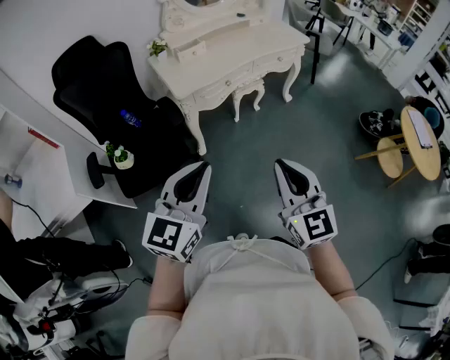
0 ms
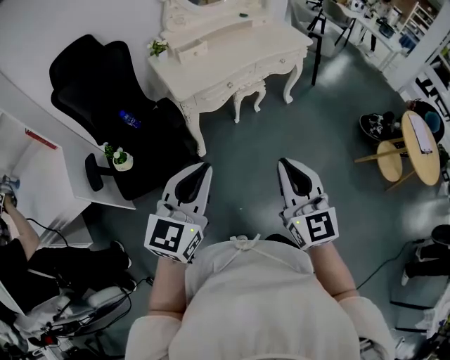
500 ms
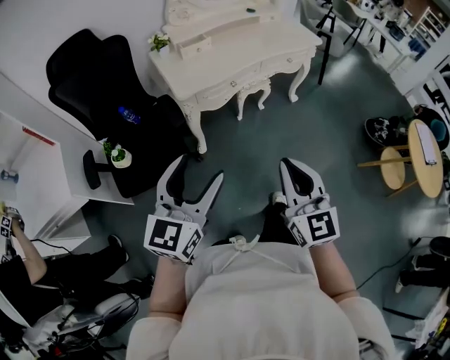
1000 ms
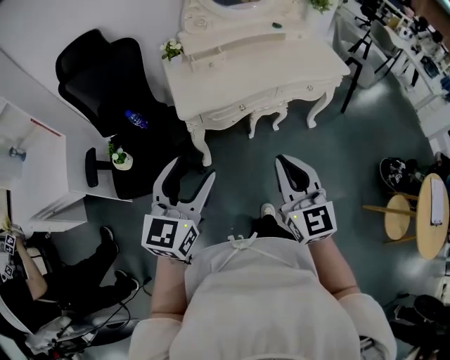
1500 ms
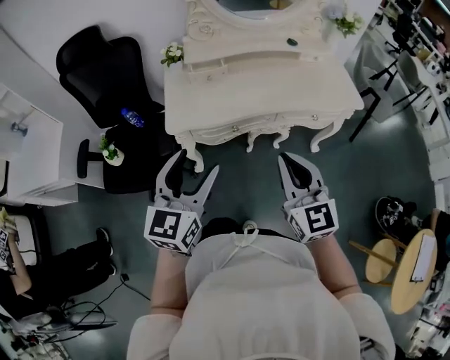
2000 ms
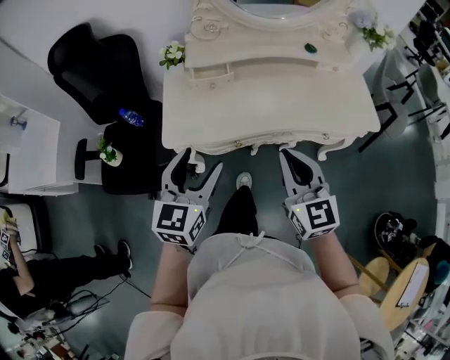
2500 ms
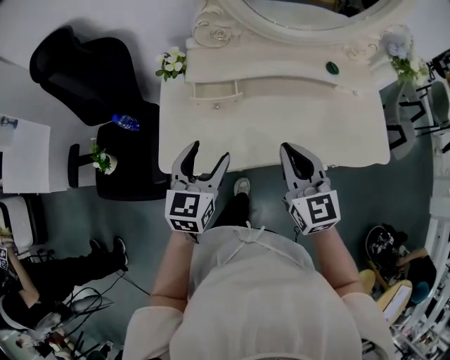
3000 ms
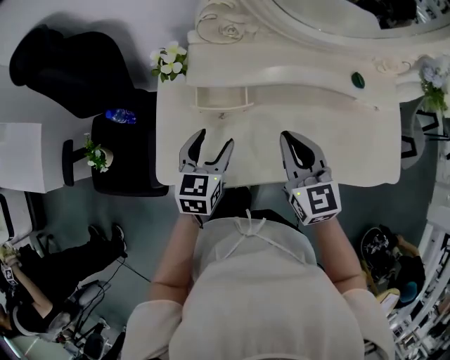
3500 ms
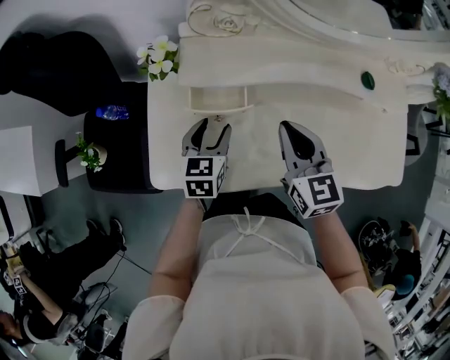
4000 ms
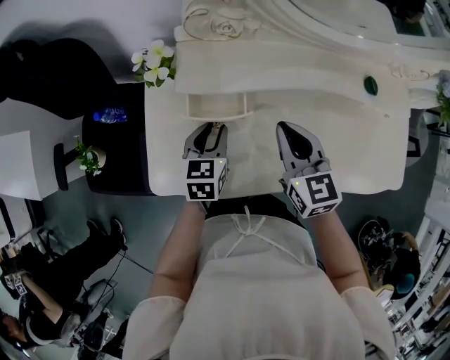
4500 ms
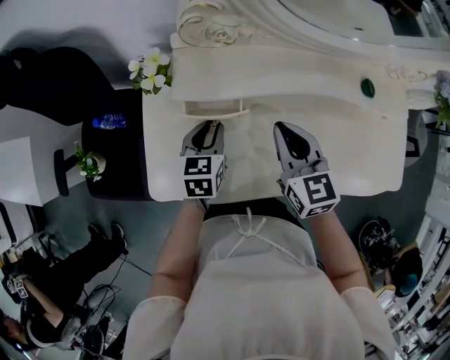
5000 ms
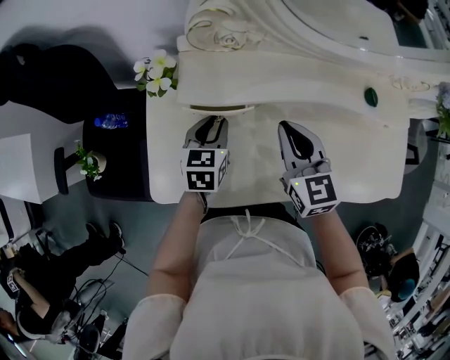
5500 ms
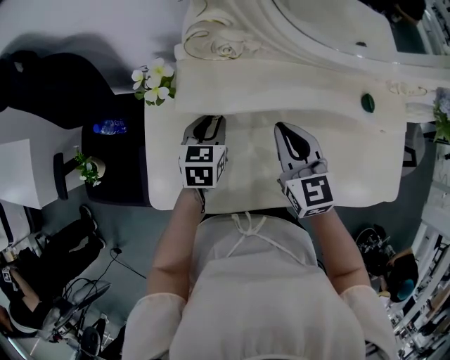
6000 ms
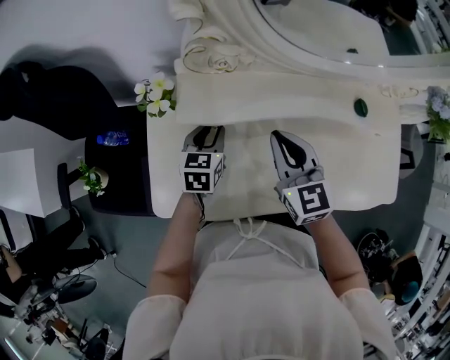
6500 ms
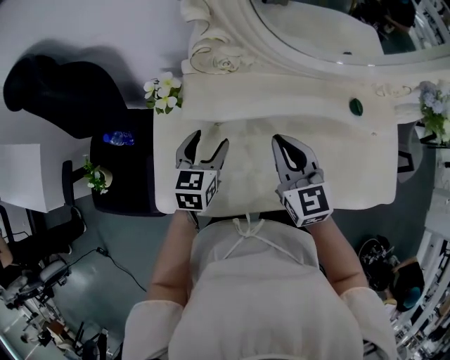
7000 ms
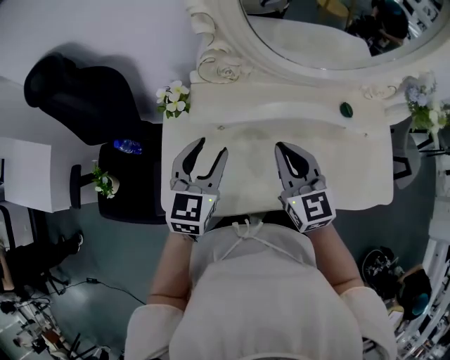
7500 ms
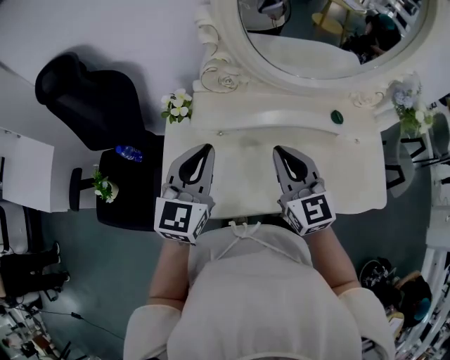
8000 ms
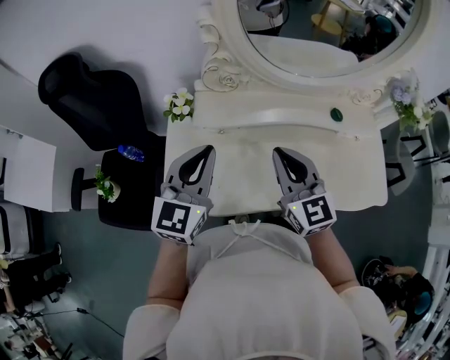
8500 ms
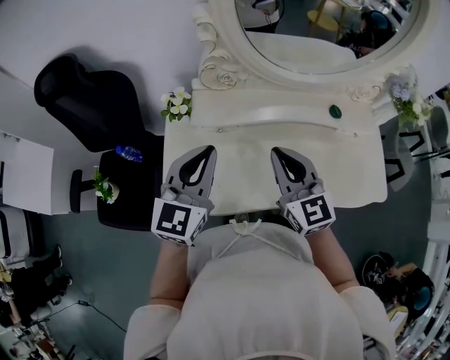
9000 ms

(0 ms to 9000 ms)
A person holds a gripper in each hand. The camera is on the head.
0 ms - 2000 ms: The left gripper ends up some 35 cm from where it was, changes its angle by some 30 degrees, and opens. Meanwhile the right gripper changes place by about 40 cm, and changes its angle by about 20 degrees.
2000 ms - 4500 ms: The pair of grippers is taken forward, about 50 cm. The right gripper turns by approximately 30 degrees; the left gripper moves downward, about 30 cm, points its fingers approximately 30 degrees further downward, and closes.
4500 ms - 7000 ms: The left gripper goes about 5 cm upward, and opens its fingers; the right gripper ends up about 5 cm from where it was.
7000 ms - 9000 ms: The left gripper heads upward and backward, covering approximately 25 cm, rotates approximately 30 degrees, and closes its fingers; the right gripper travels upward and backward by some 10 cm.

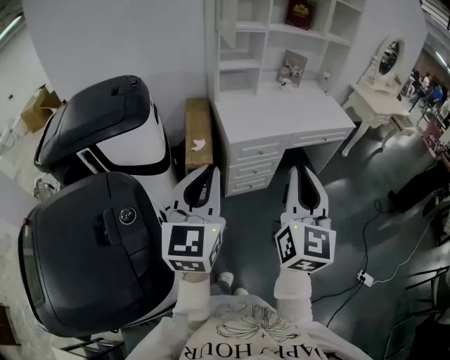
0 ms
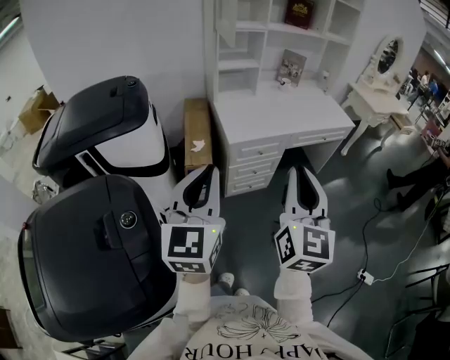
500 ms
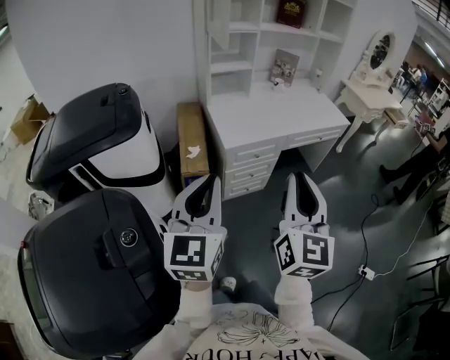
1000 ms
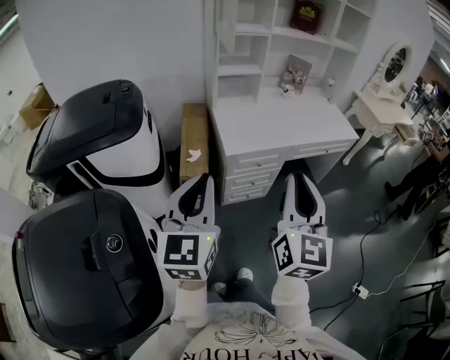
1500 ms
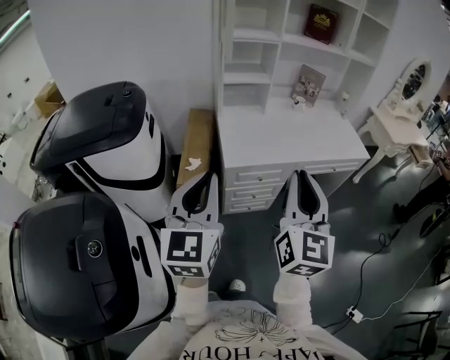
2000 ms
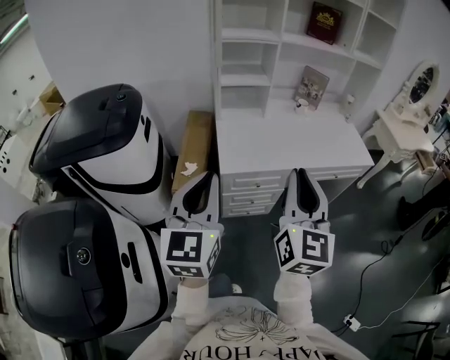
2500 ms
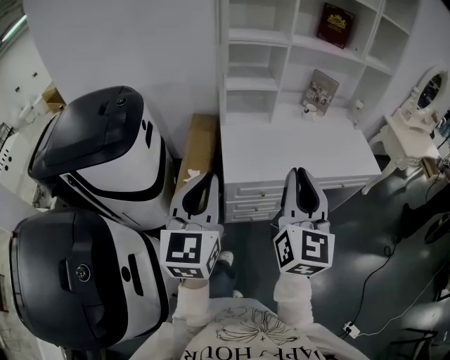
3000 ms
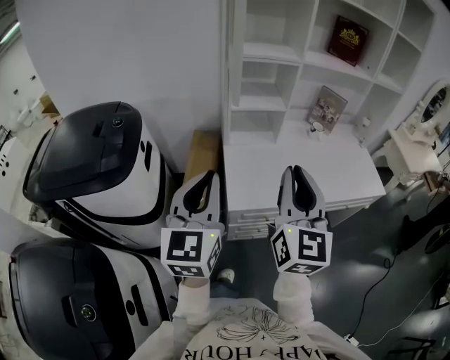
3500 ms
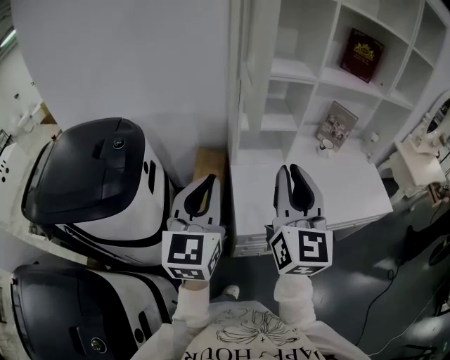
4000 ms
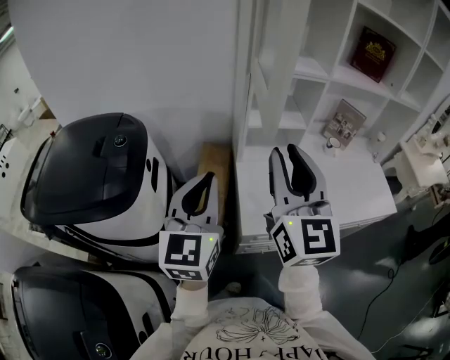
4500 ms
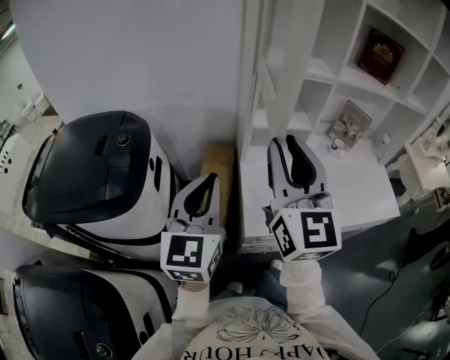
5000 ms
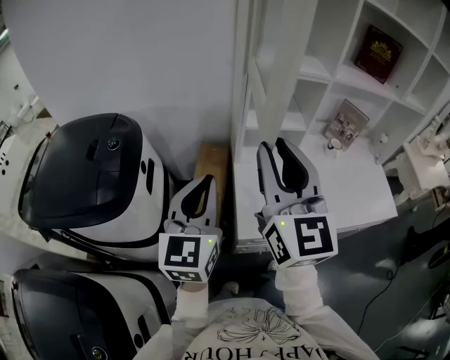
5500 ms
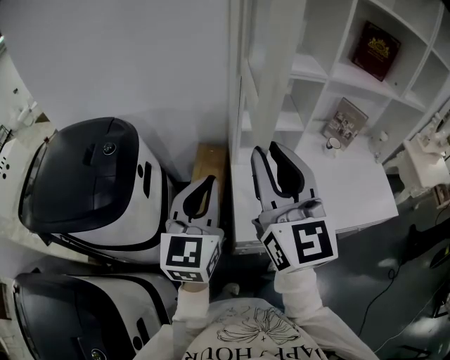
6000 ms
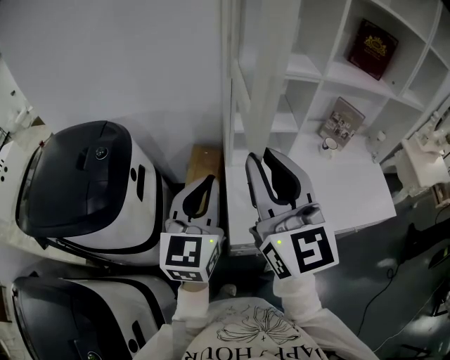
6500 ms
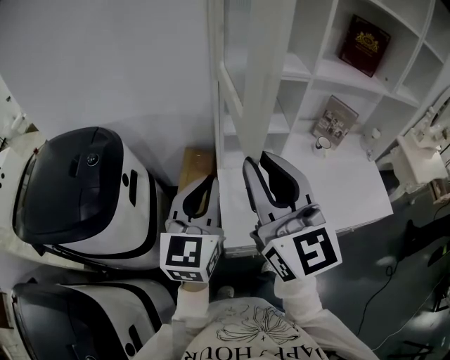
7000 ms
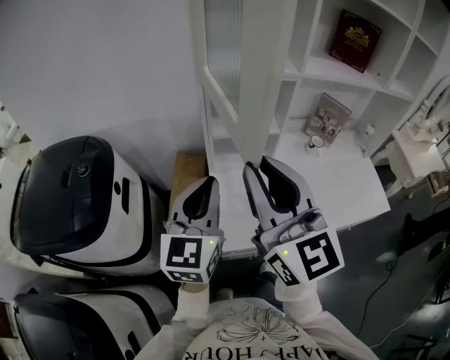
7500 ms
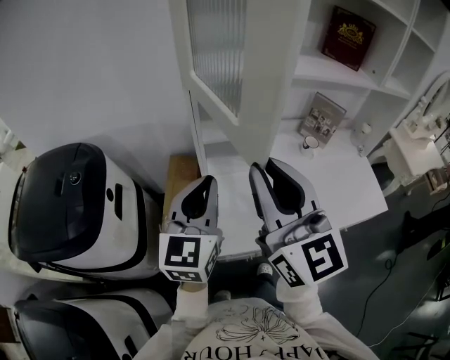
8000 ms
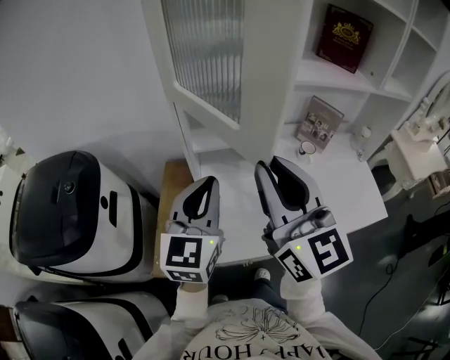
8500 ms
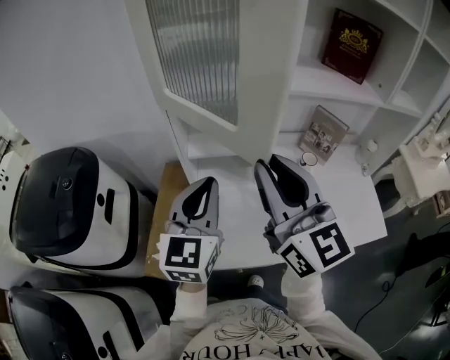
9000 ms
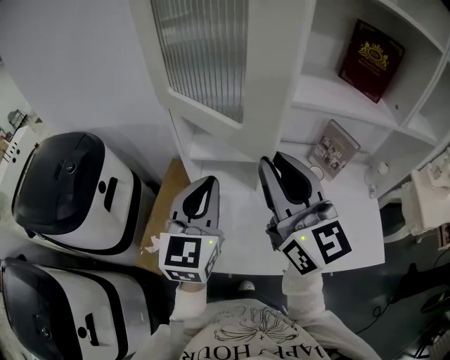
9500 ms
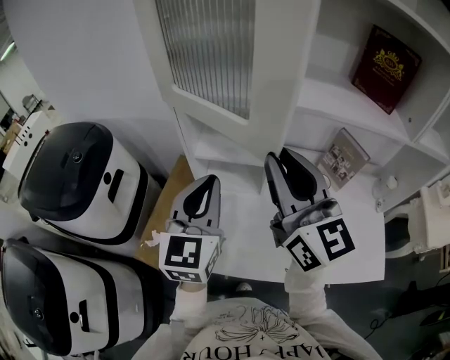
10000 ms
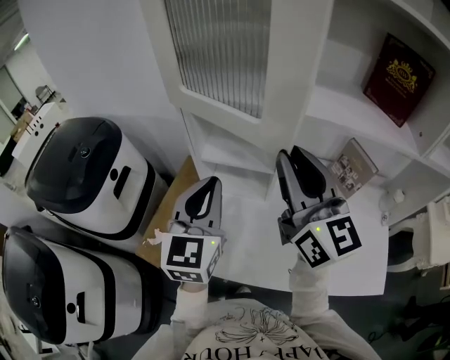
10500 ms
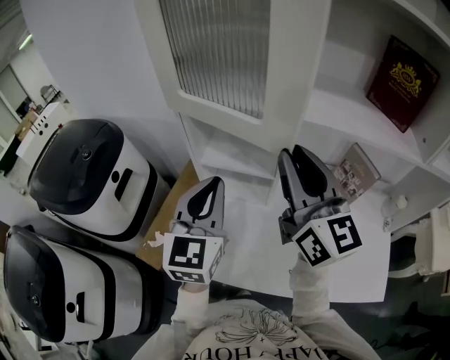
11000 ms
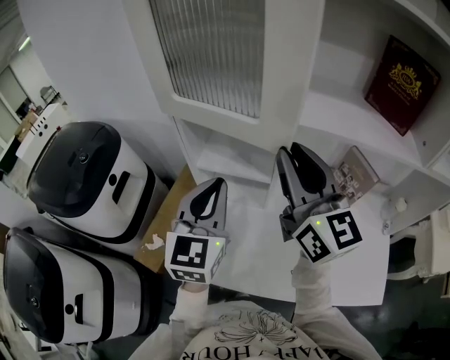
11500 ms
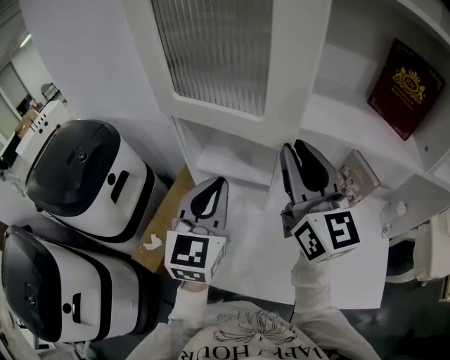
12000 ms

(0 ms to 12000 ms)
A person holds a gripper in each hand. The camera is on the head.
0 ms - 2000 ms: Both grippers travel together forward, roughly 15 cm.
2000 ms - 4000 ms: The two grippers go approximately 30 cm forward.
4000 ms - 6000 ms: The right gripper goes about 10 cm forward and to the left, while the left gripper heads forward, covering roughly 5 cm.
6000 ms - 8000 ms: The right gripper shifts about 10 cm to the right. Meanwhile the left gripper heads to the right and forward, covering roughly 15 cm.
8000 ms - 10000 ms: Both grippers move to the right and forward, roughly 15 cm.
10000 ms - 12000 ms: The right gripper heads forward and to the right, covering about 10 cm, while the left gripper ends up roughly 5 cm from where it was.

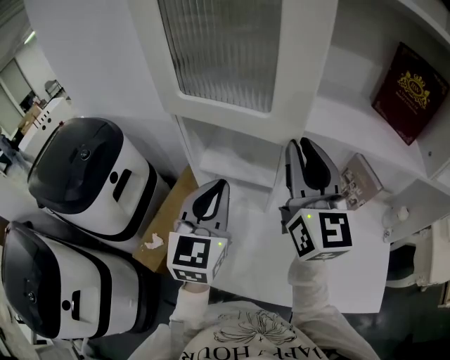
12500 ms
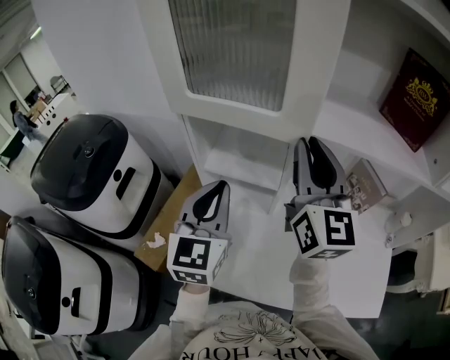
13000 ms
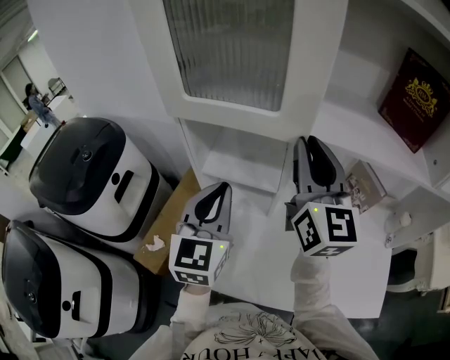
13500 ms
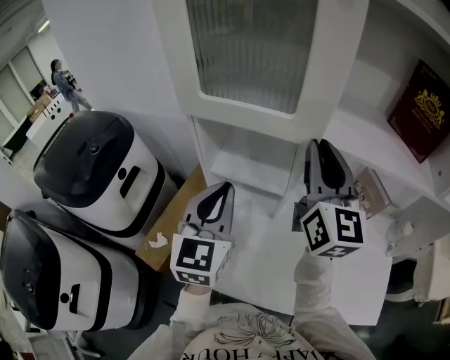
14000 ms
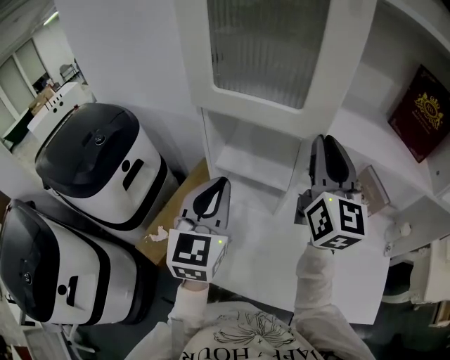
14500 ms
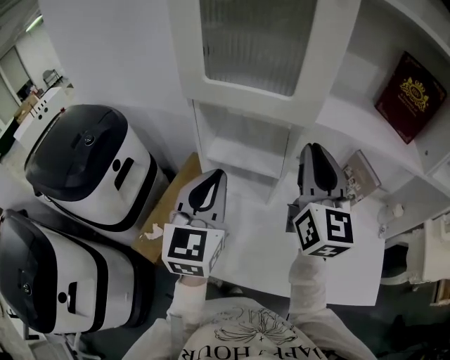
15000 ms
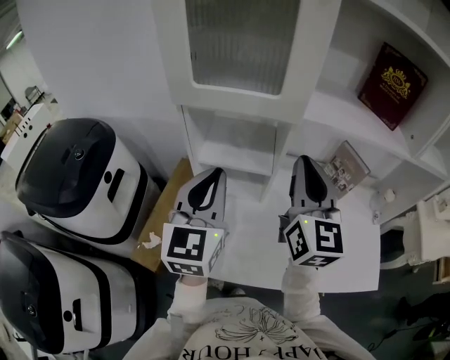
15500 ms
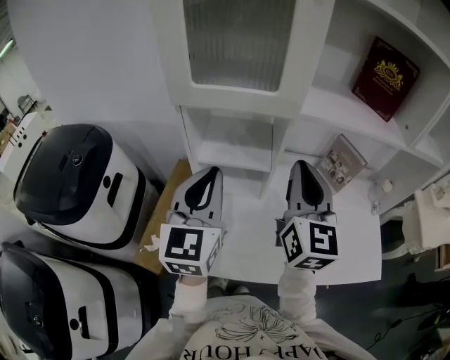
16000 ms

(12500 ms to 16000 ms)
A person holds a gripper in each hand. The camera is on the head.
12500 ms - 14500 ms: The grippers make only small movements.
14500 ms - 16000 ms: The right gripper heads backward, covering roughly 10 cm.

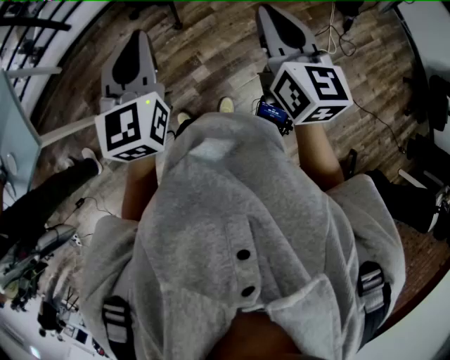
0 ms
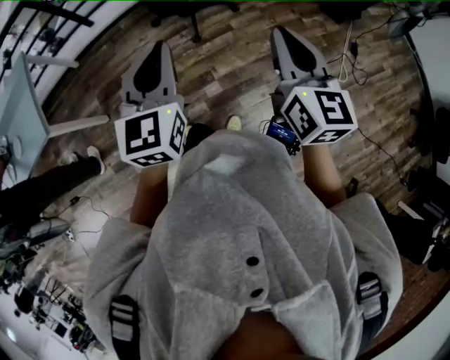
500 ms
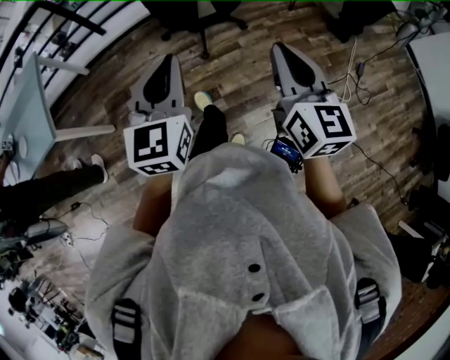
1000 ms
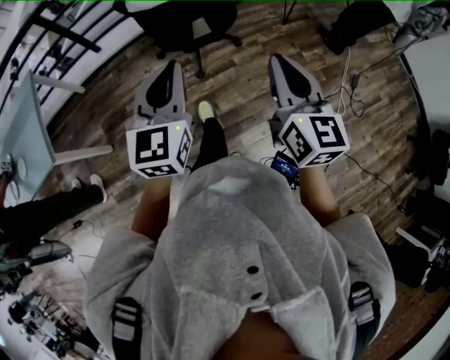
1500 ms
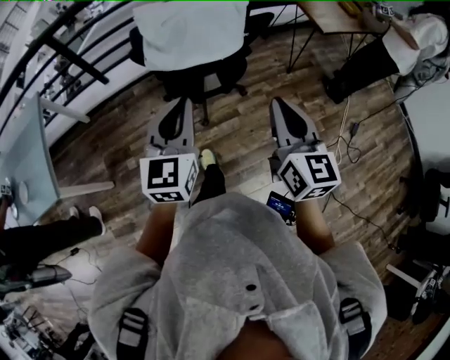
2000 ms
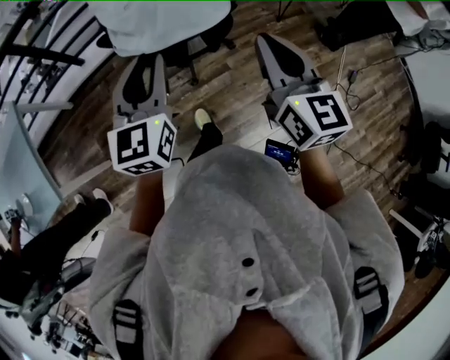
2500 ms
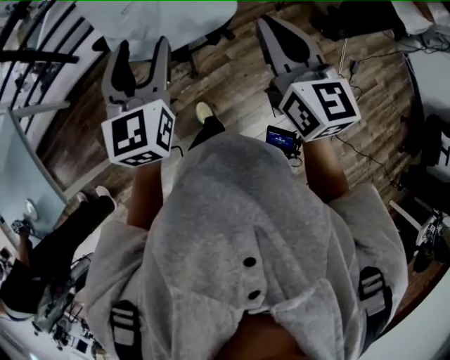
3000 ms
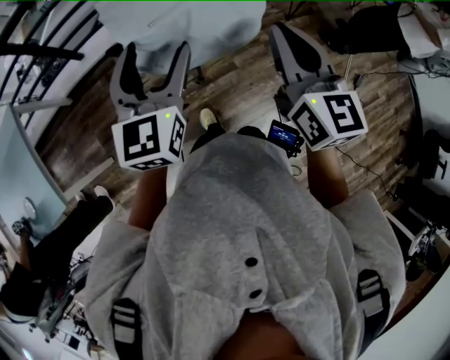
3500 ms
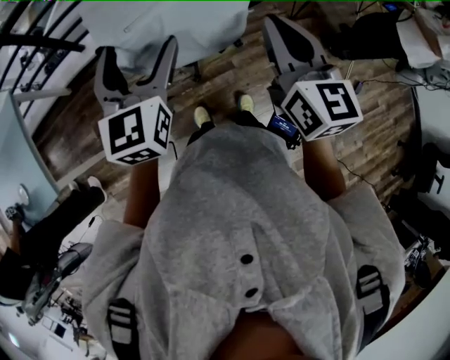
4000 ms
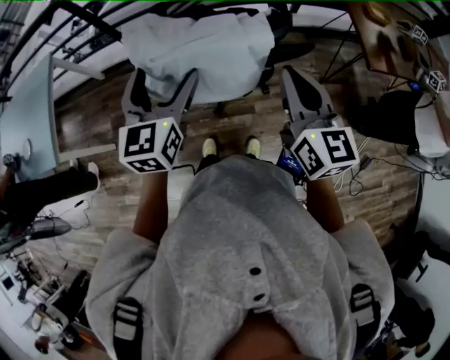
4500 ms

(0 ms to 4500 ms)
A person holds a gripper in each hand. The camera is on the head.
0 ms - 2000 ms: Both grippers move forward, approximately 20 cm.
2000 ms - 4500 ms: The grippers both shift forward by approximately 25 cm. The left gripper opens.
